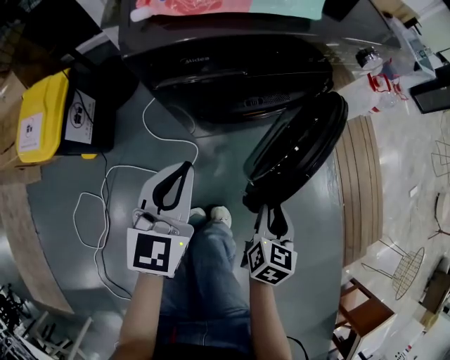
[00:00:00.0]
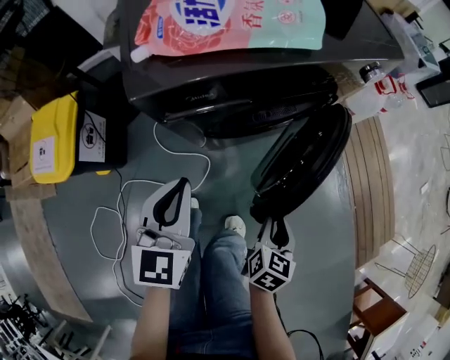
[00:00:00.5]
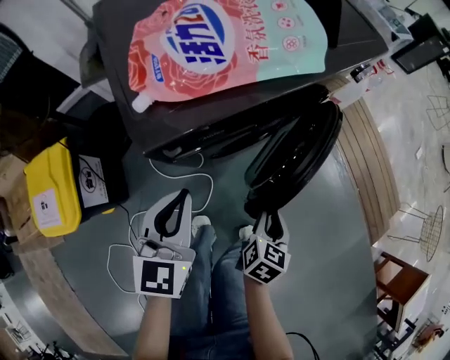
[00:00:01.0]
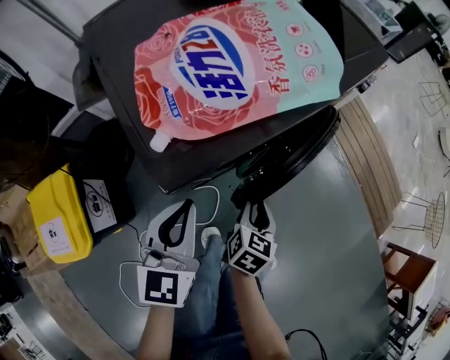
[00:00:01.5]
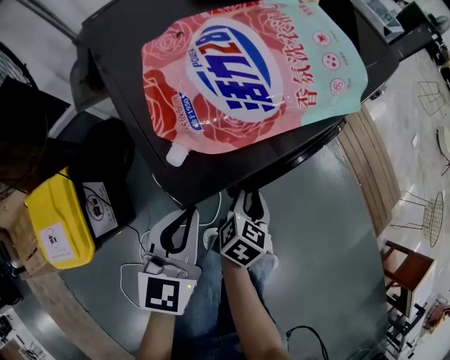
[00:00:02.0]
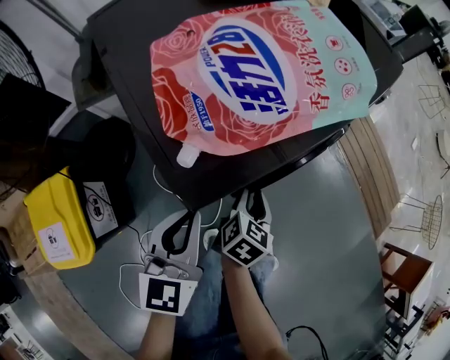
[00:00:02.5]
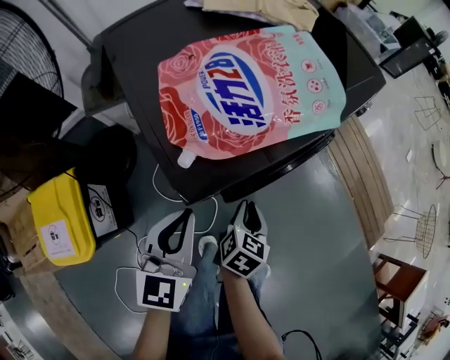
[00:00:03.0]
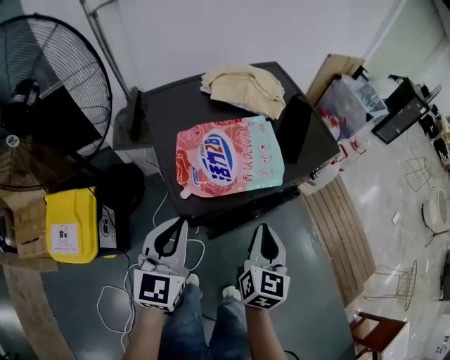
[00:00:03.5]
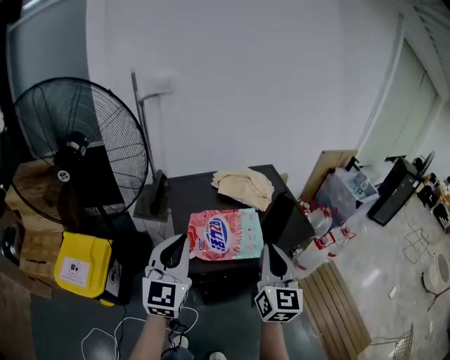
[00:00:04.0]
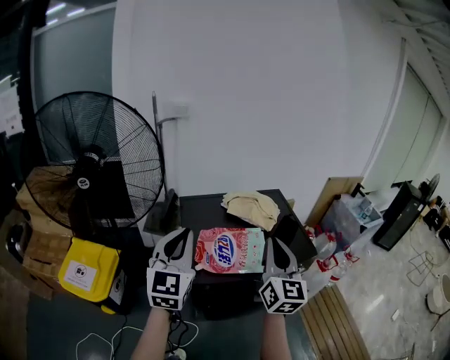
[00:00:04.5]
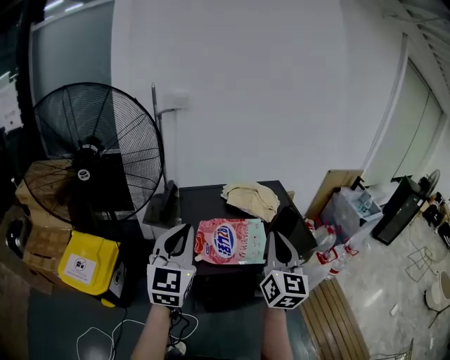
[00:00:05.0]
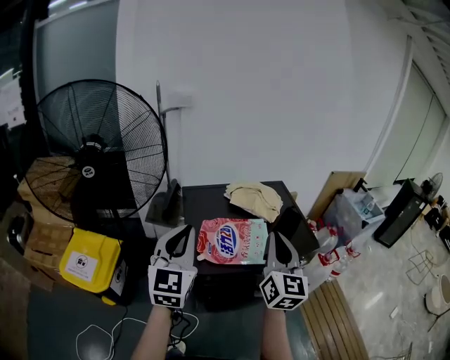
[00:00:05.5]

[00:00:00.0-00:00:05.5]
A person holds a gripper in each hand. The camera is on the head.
00:00:00.0 to 00:00:02.0: The right gripper shifts about 25 cm to the left and forward, and swivels roughly 30 degrees; the left gripper goes about 15 cm to the left and forward.
00:00:02.0 to 00:00:03.5: The right gripper travels upward by about 30 cm, changes its angle by approximately 40 degrees, and closes its fingers, while the left gripper moves upward, about 20 cm.
00:00:03.5 to 00:00:05.5: The grippers both shift upward by roughly 25 cm. The left gripper changes its angle by approximately 20 degrees. The right gripper changes its angle by approximately 30 degrees.

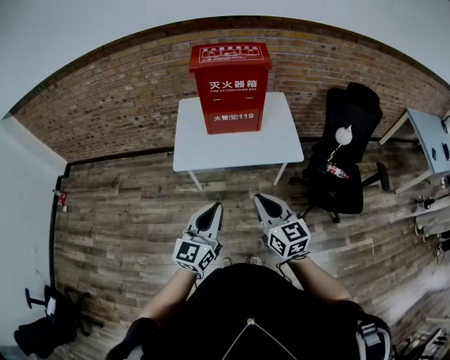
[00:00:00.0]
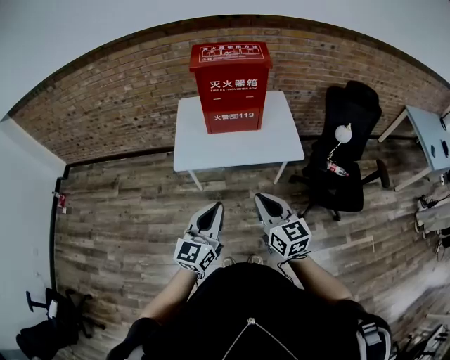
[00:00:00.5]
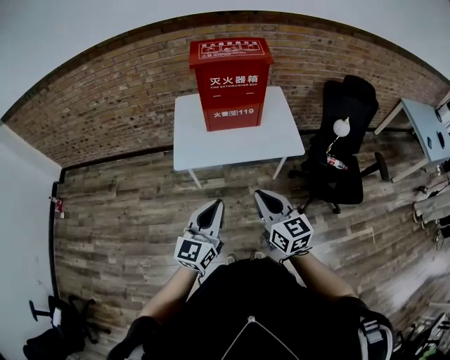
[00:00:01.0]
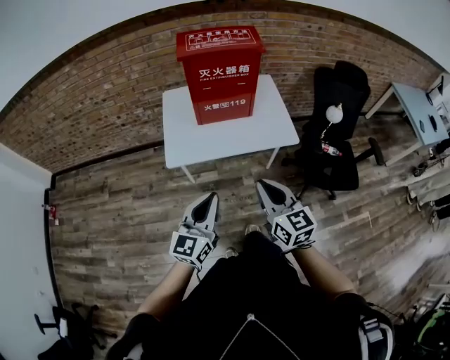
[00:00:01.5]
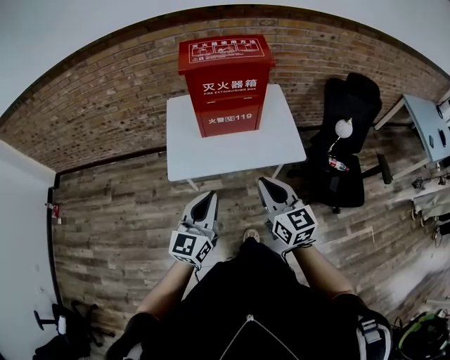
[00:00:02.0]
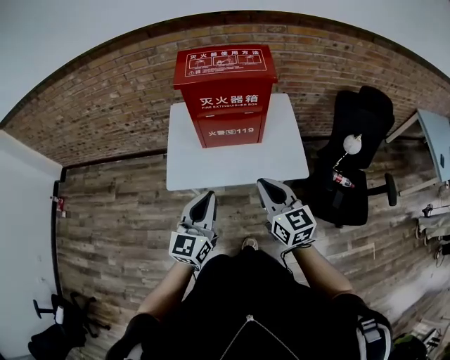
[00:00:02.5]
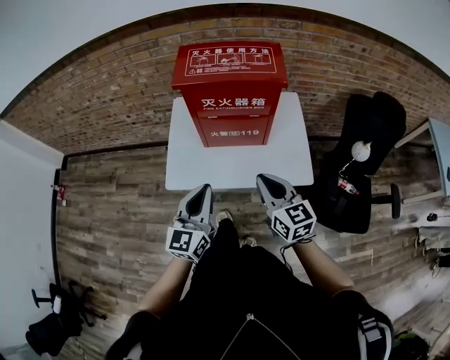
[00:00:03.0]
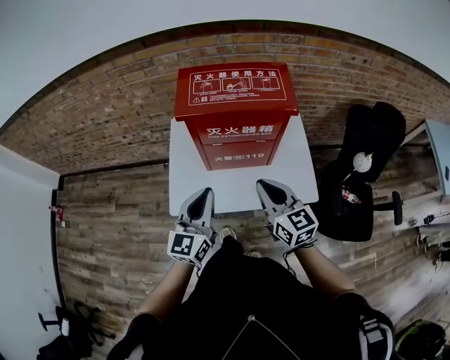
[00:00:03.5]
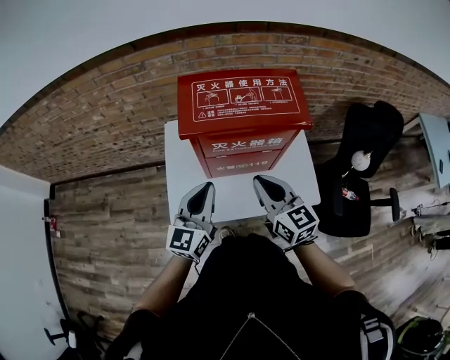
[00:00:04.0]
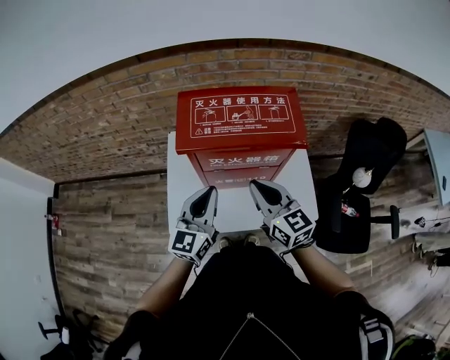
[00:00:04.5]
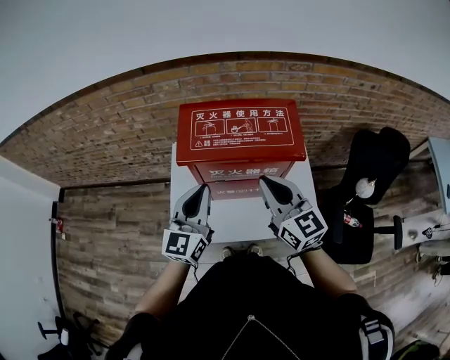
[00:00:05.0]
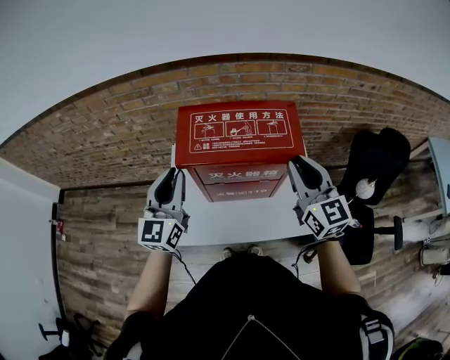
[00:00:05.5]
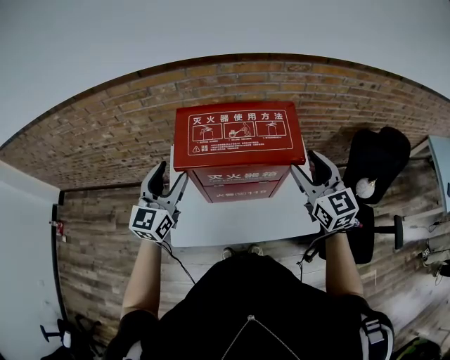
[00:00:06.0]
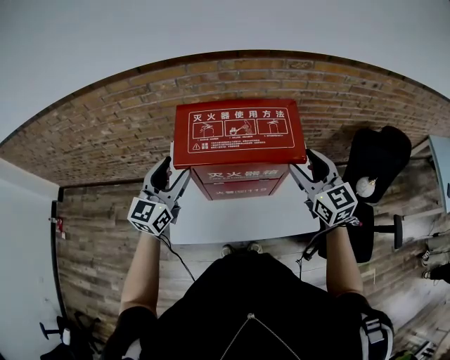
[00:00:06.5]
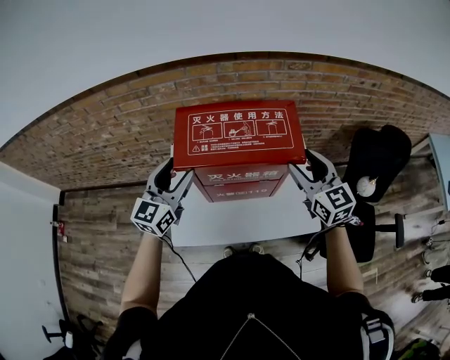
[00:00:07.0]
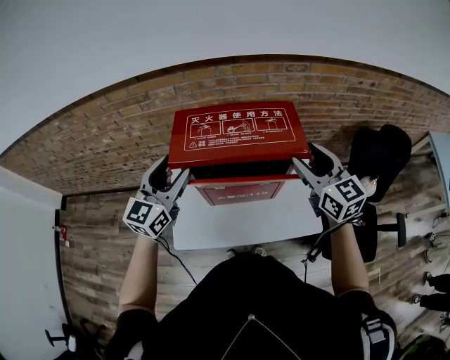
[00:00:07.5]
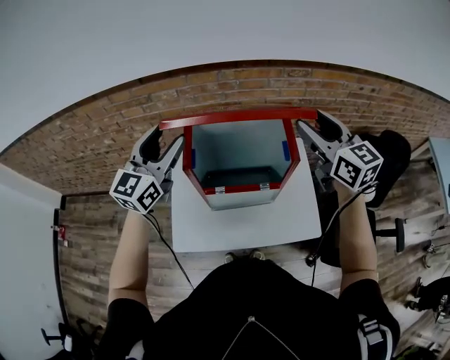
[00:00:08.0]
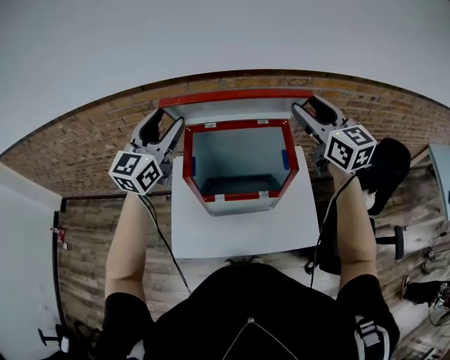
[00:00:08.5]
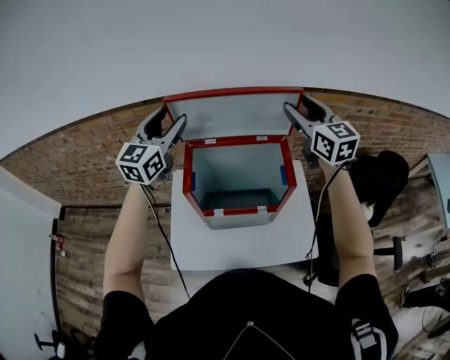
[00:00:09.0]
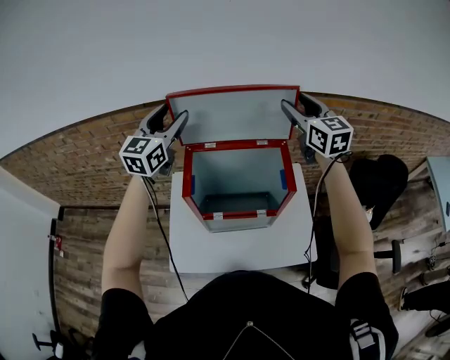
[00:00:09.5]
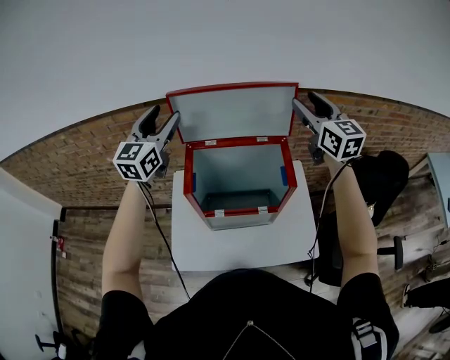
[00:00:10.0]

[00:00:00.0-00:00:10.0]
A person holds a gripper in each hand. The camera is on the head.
00:00:00.0 to 00:00:02.0: Both grippers move forward, about 15 cm.
00:00:02.0 to 00:00:04.0: The two grippers go approximately 30 cm forward.
00:00:04.0 to 00:00:06.0: The right gripper shifts about 20 cm to the right, forward and upward, and opens its fingers, while the left gripper moves forward and upward, roughly 15 cm, and opens up.
00:00:06.0 to 00:00:08.0: Both grippers travel together upward and forward, some 15 cm.
00:00:08.0 to 00:00:10.0: Both grippers travel together forward, some 10 cm.

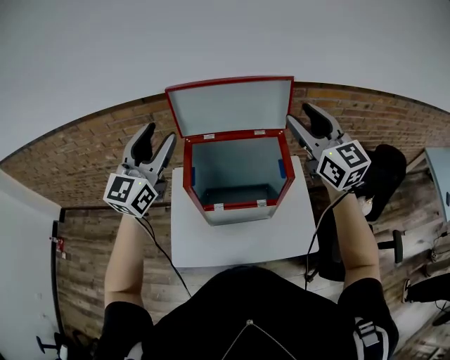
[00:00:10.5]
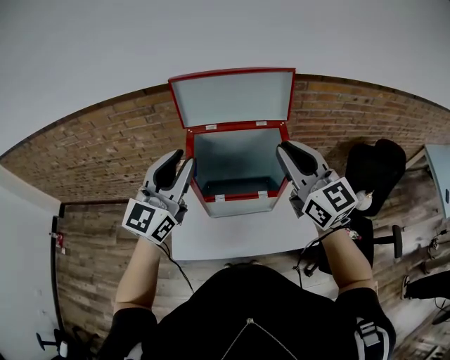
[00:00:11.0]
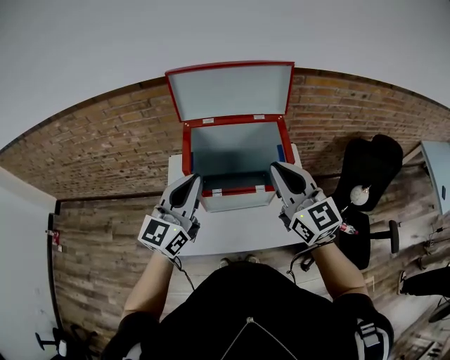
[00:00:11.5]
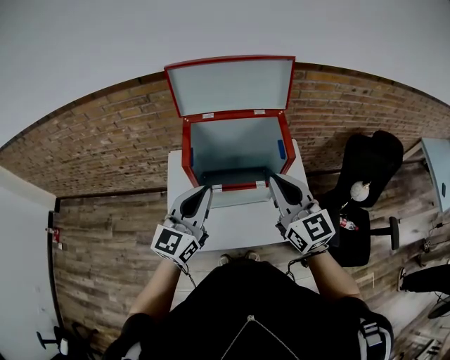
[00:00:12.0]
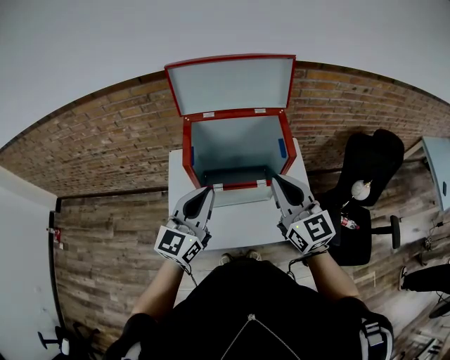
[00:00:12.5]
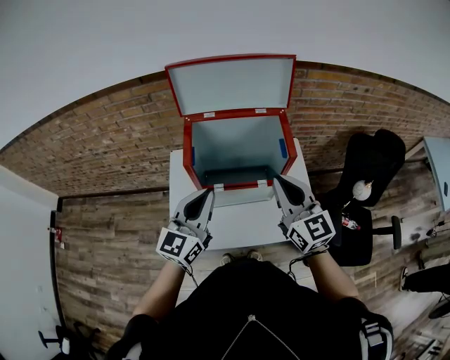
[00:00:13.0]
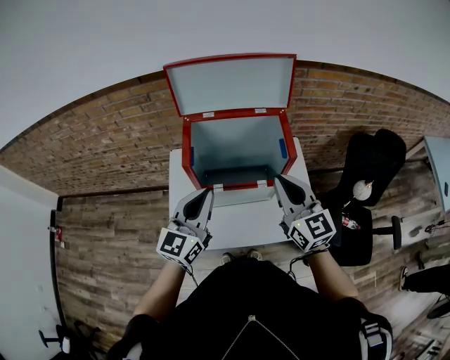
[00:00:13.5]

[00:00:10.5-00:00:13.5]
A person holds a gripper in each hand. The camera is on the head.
00:00:10.5 to 00:00:12.0: The left gripper moves downward, backward and to the right, roughly 20 cm, and closes; the right gripper shifts about 20 cm backward, downward and to the left, and closes up.
00:00:12.0 to 00:00:13.5: The grippers move only a little.

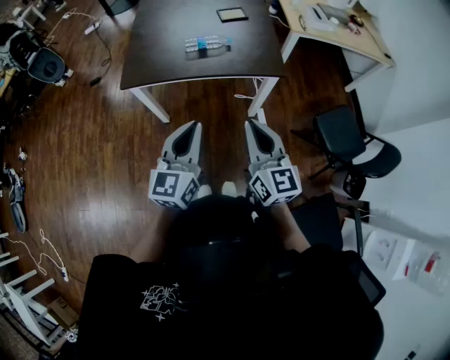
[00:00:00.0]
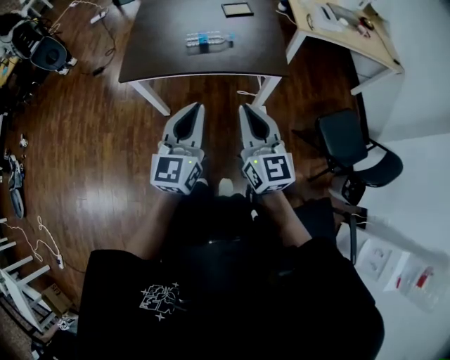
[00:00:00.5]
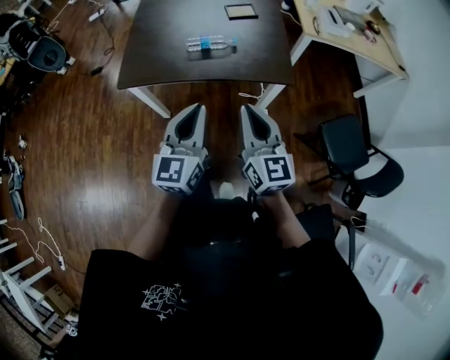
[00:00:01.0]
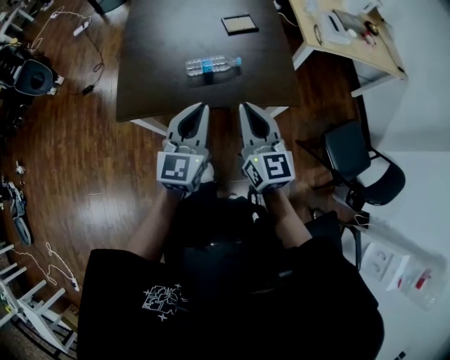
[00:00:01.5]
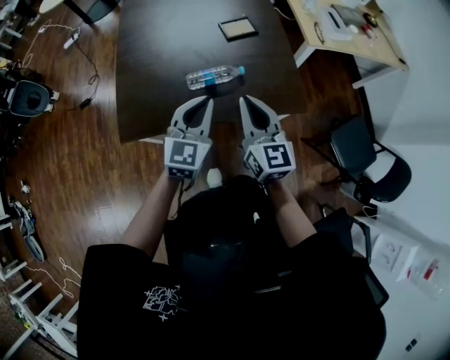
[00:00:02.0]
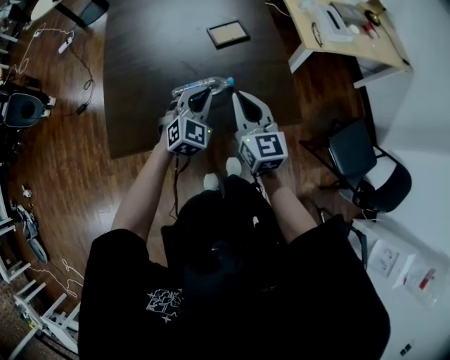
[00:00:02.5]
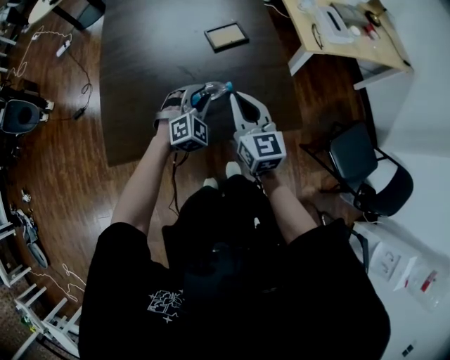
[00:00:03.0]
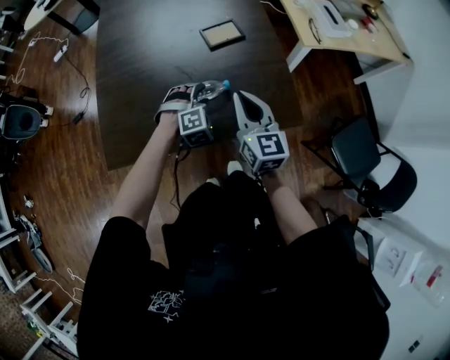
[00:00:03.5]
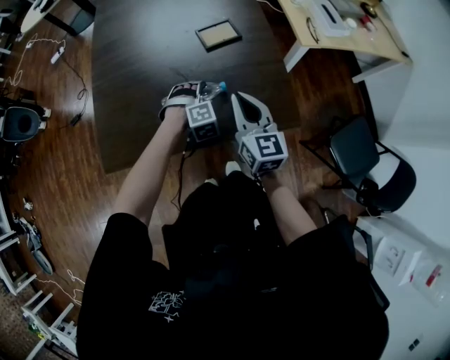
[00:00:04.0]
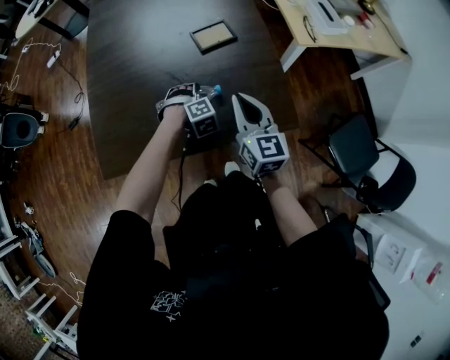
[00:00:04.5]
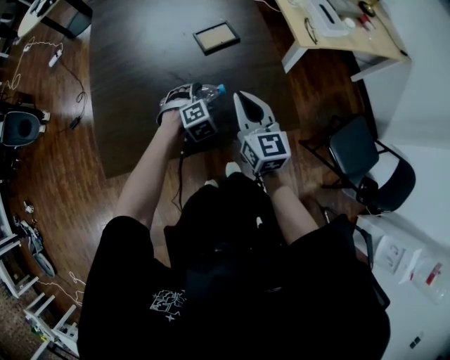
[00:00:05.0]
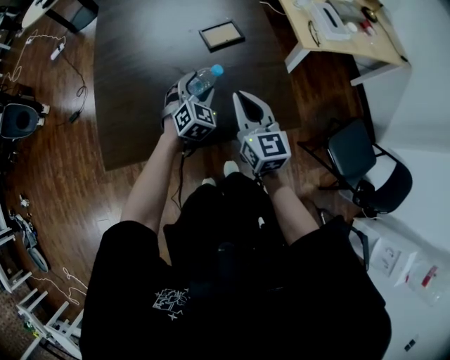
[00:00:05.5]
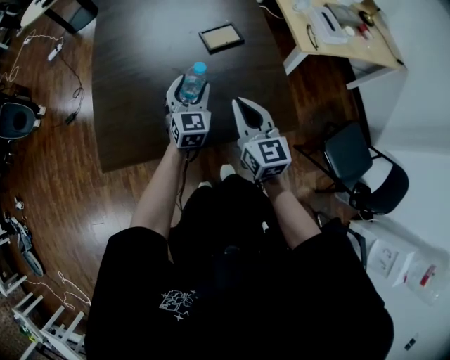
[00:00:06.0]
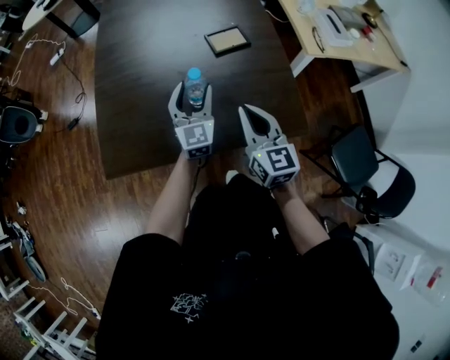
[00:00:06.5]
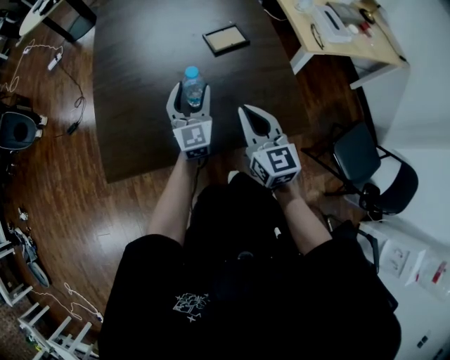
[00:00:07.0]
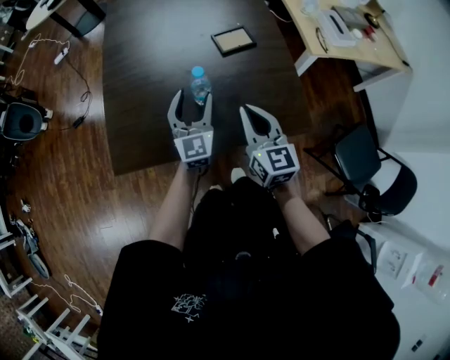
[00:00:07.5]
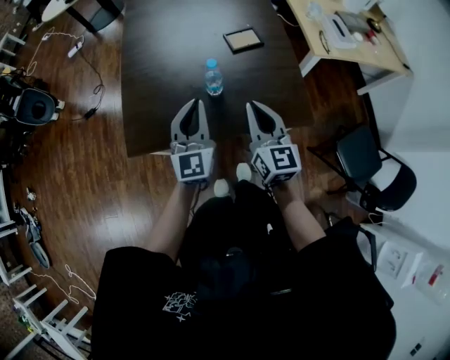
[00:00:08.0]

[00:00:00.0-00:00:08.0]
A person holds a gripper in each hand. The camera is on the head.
00:00:00.0 to 00:00:02.0: Both grippers move forward, some 35 cm. The left gripper swivels about 20 degrees.
00:00:02.0 to 00:00:04.0: The right gripper goes roughly 15 cm forward, downward and to the right. Meanwhile the left gripper heads downward and forward, covering some 30 cm, tilts its fingers roughly 50 degrees downward, and opens up.
00:00:04.0 to 00:00:06.0: The left gripper travels upward by approximately 10 cm, and tips its fingers upward by roughly 40 degrees.
00:00:06.0 to 00:00:08.0: The left gripper moves upward, backward and to the left, about 20 cm, turns by some 20 degrees, and closes up. The right gripper moves upward and backward, some 10 cm.
